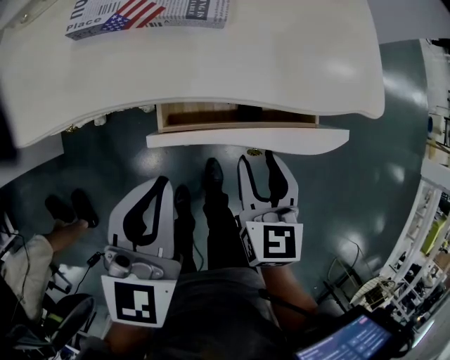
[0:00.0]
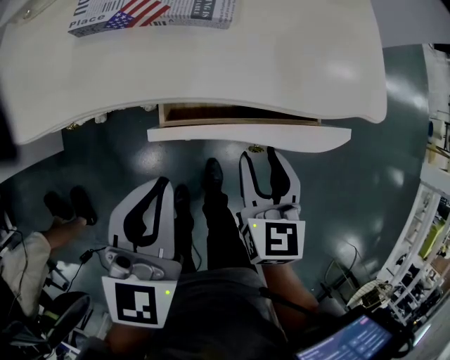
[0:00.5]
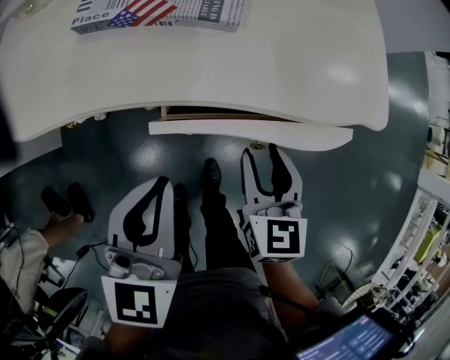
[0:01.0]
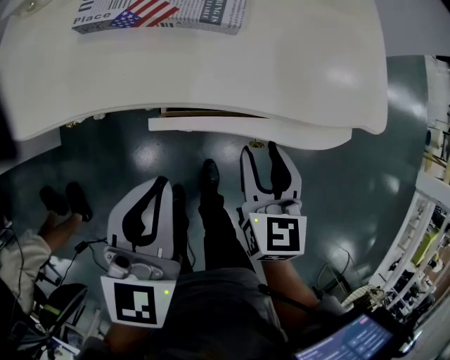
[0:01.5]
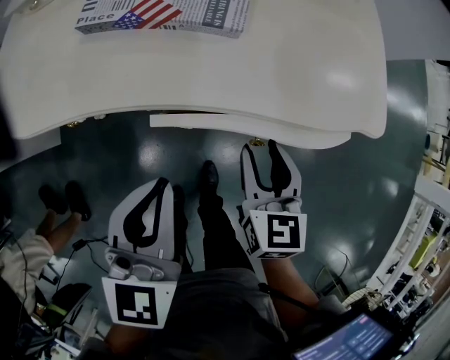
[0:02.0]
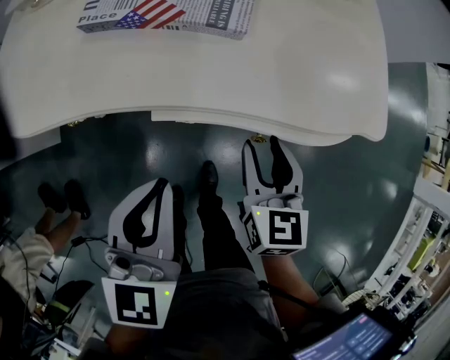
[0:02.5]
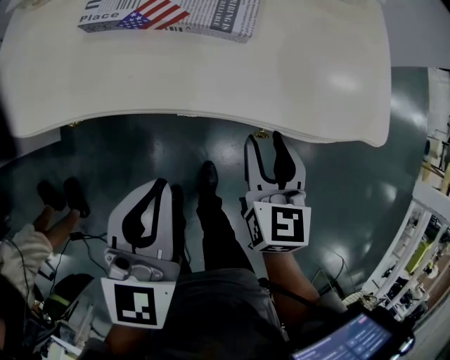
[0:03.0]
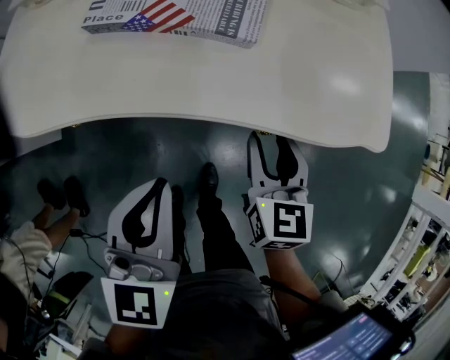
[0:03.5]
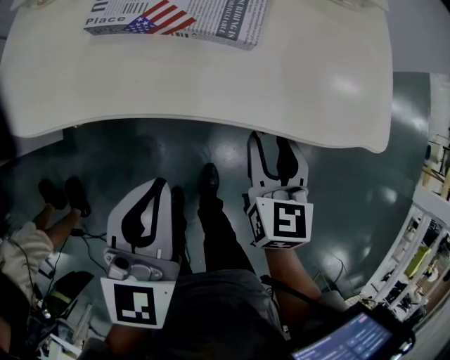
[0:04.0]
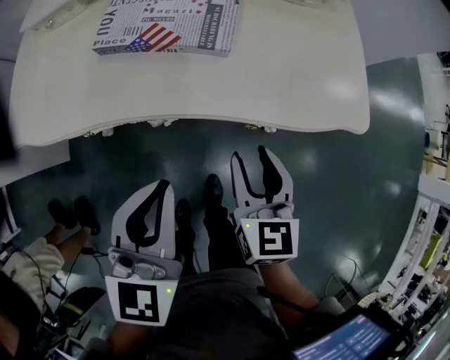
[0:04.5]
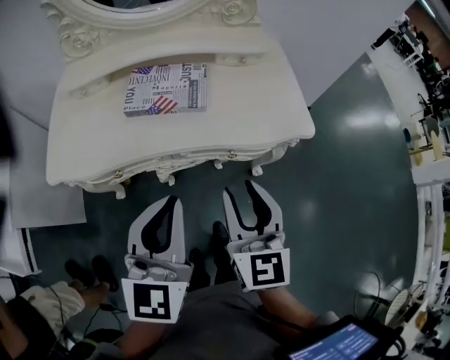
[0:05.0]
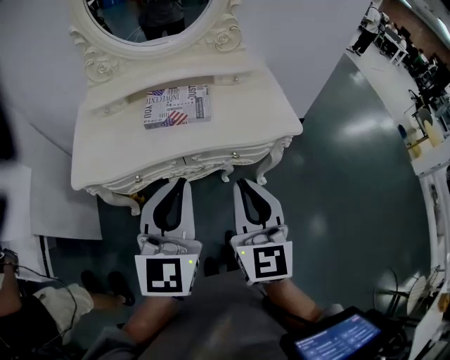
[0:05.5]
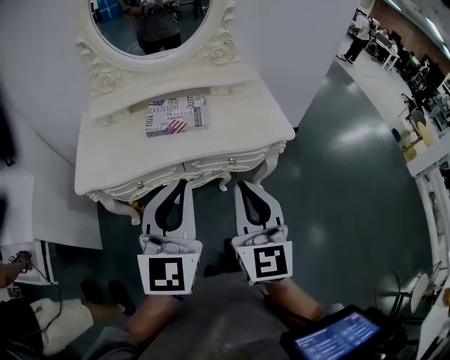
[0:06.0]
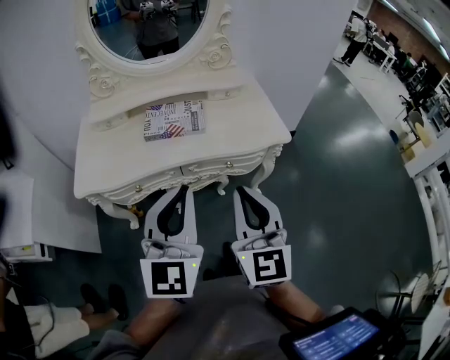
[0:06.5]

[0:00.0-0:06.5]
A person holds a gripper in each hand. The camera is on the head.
0:00.0 to 0:02.0: The grippers stay close to where they were, moving slightly.
0:02.0 to 0:04.5: The right gripper changes place by roughly 5 cm.
0:04.5 to 0:06.5: Both grippers move upward and backward, about 30 cm. The right gripper changes its angle by some 30 degrees, and closes its fingers. Meanwhile the left gripper changes its angle by about 30 degrees.

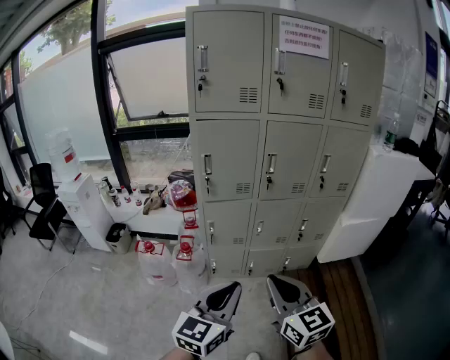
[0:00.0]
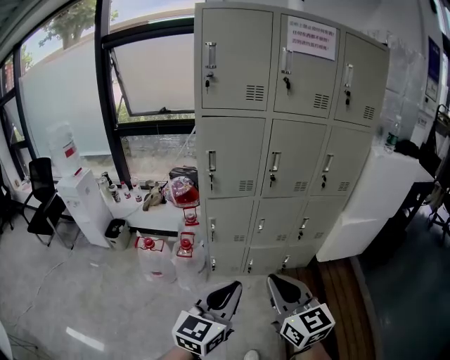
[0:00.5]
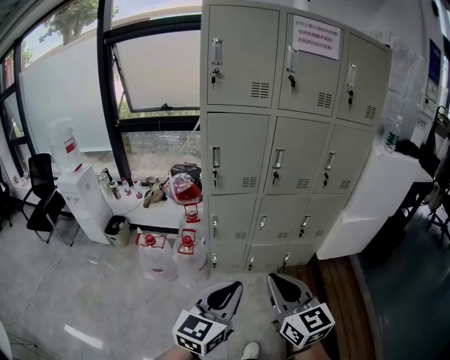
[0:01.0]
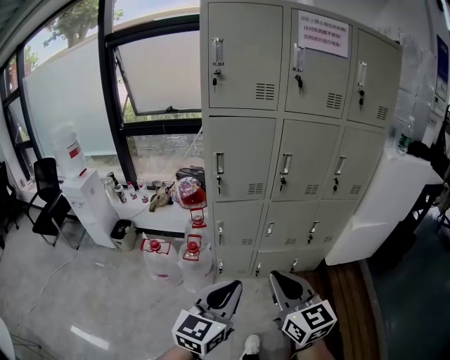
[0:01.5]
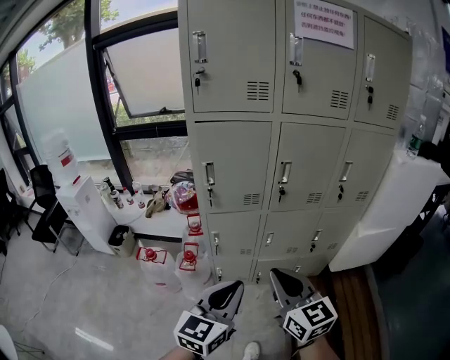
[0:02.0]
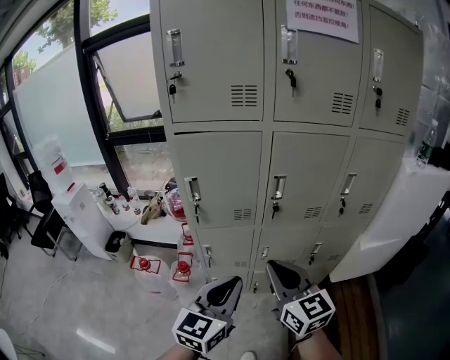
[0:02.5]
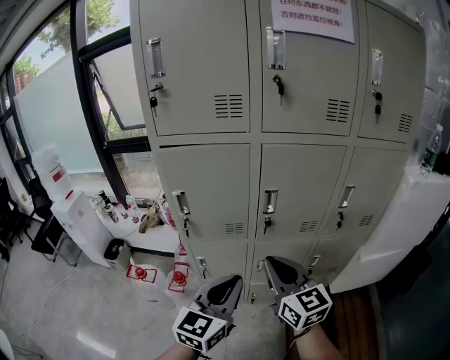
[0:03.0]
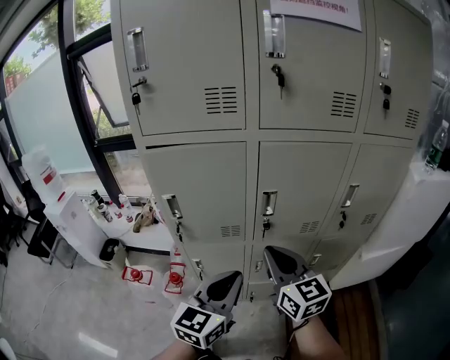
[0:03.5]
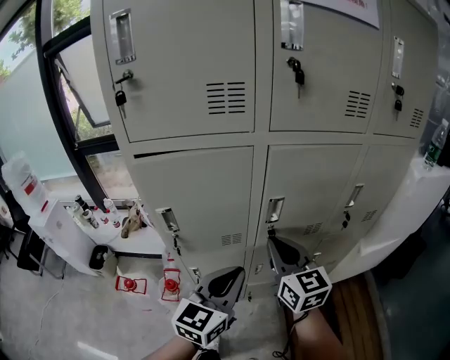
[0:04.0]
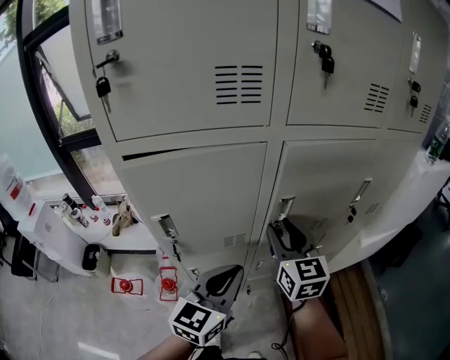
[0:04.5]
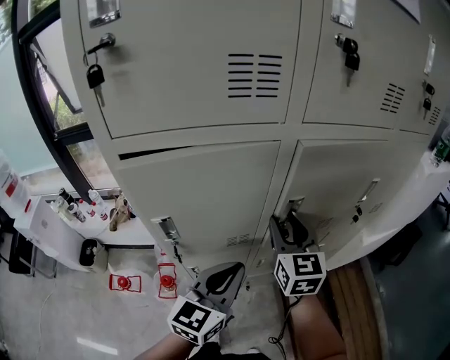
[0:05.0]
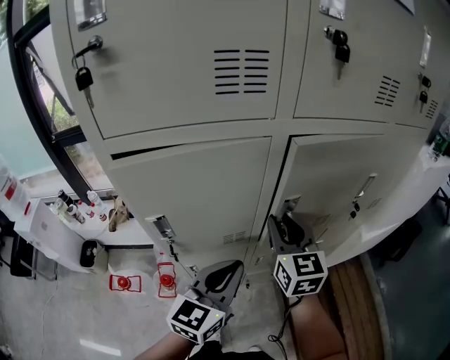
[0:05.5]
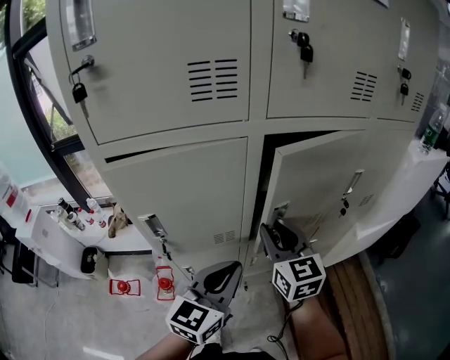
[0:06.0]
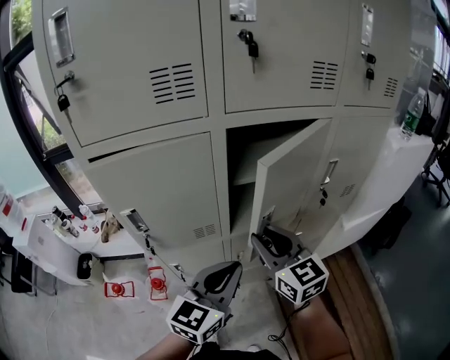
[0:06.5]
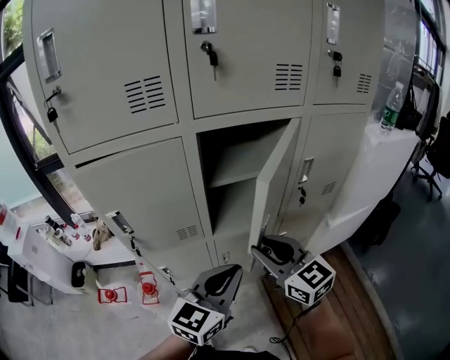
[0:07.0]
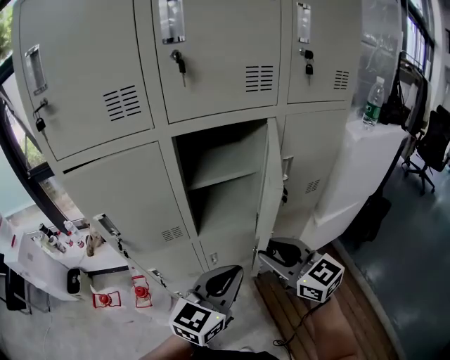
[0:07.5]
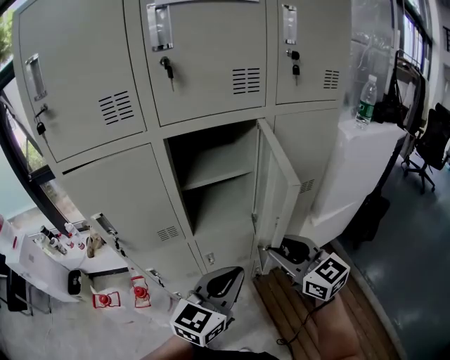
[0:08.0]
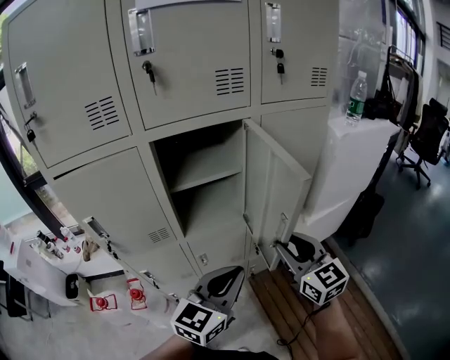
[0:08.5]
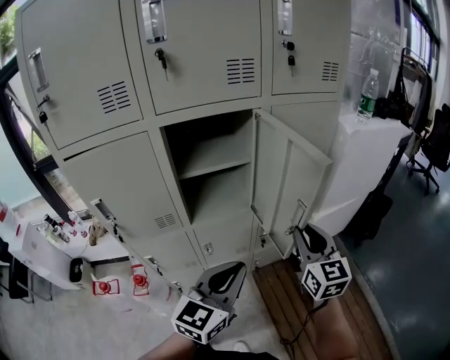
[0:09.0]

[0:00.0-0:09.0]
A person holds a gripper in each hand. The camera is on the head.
0:00.0 to 0:02.0: The two grippers go roughly 15 cm forward.
0:02.0 to 0:04.5: Both grippers move forward, approximately 35 cm. The right gripper changes its angle by roughly 20 degrees, and opens up.
0:04.5 to 0:07.0: The left gripper goes some 15 cm to the right. The right gripper shifts some 15 cm backward and to the right.
0:07.0 to 0:09.0: The left gripper is displaced to the right by some 10 cm, while the right gripper goes roughly 20 cm to the right, and turns by roughly 30 degrees.

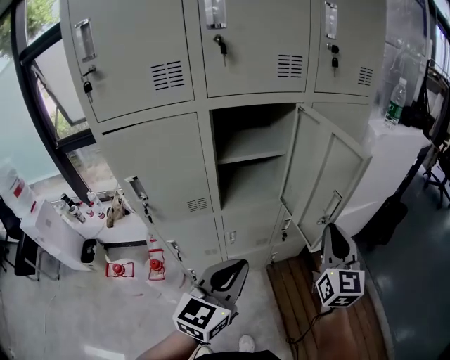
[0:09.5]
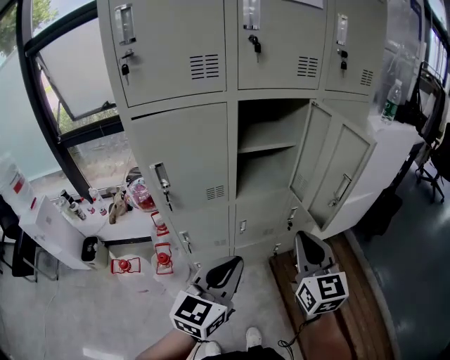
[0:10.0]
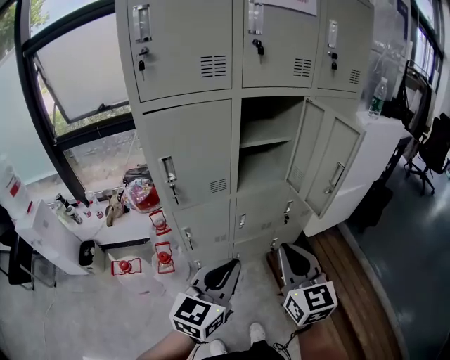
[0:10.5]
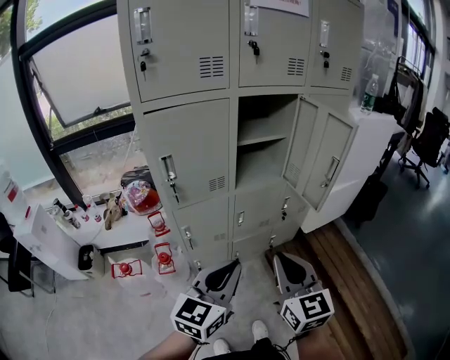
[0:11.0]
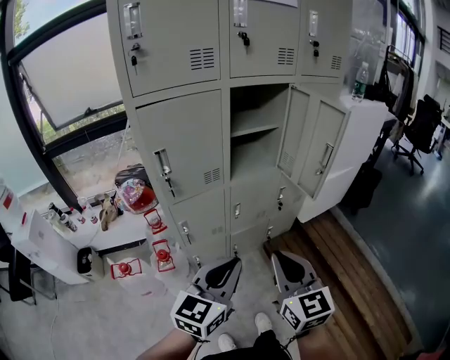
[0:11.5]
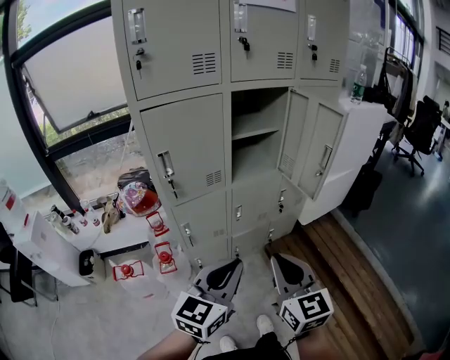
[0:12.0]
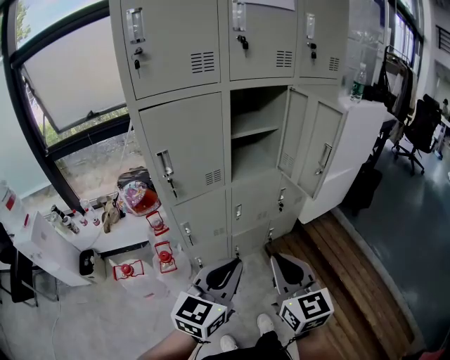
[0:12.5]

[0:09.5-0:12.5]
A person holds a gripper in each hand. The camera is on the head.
0:09.5 to 0:11.0: The left gripper travels backward and to the left by about 20 cm. The right gripper shifts approximately 30 cm backward and to the left.
0:11.0 to 0:12.5: The grippers move only a little.

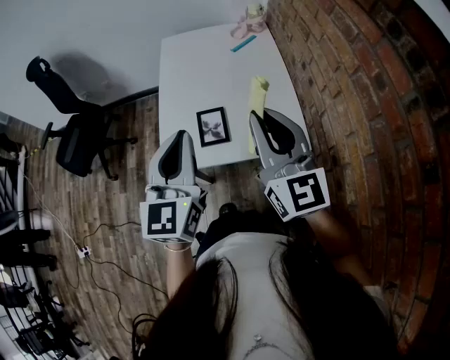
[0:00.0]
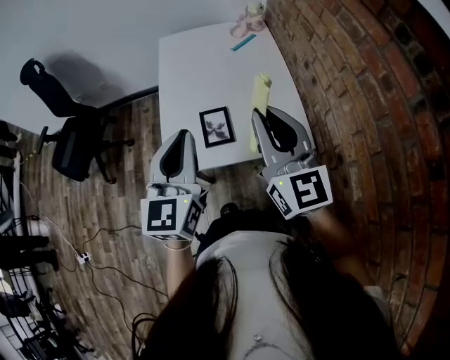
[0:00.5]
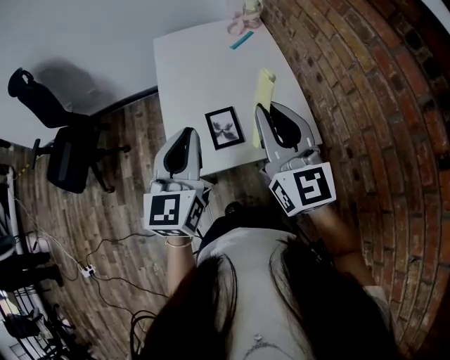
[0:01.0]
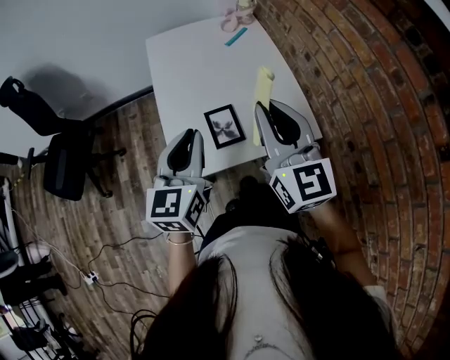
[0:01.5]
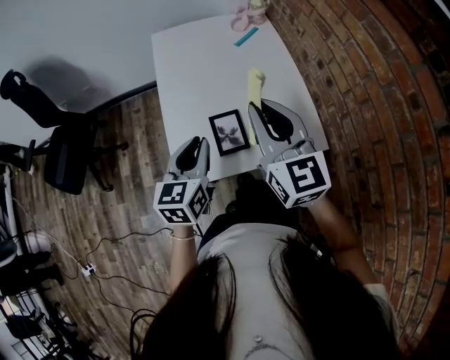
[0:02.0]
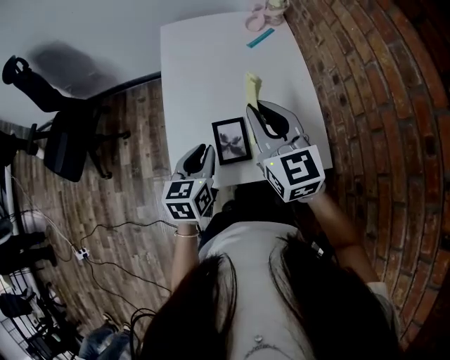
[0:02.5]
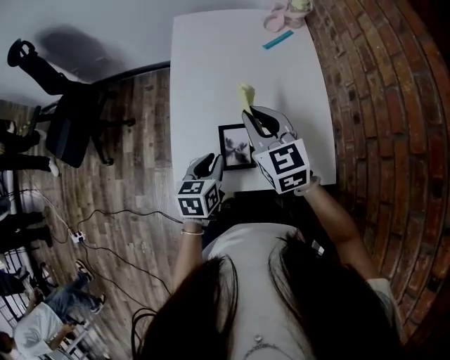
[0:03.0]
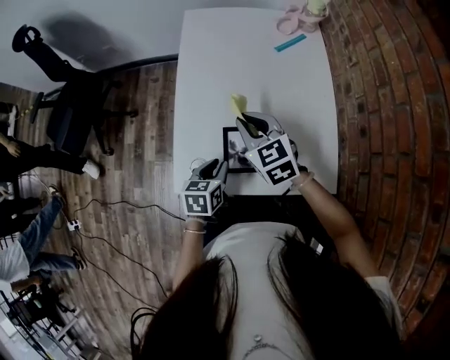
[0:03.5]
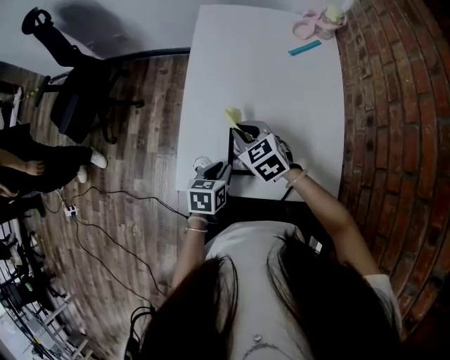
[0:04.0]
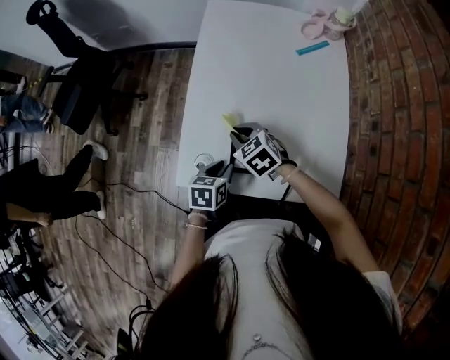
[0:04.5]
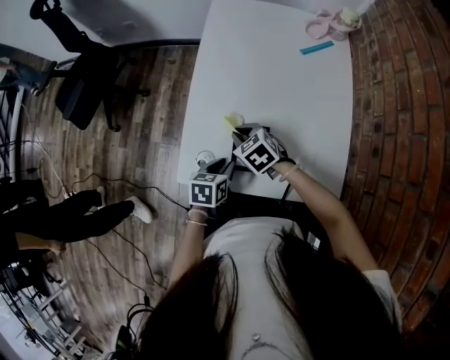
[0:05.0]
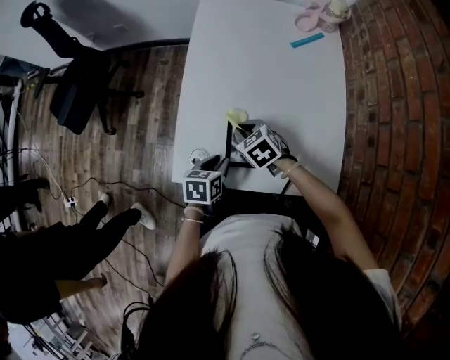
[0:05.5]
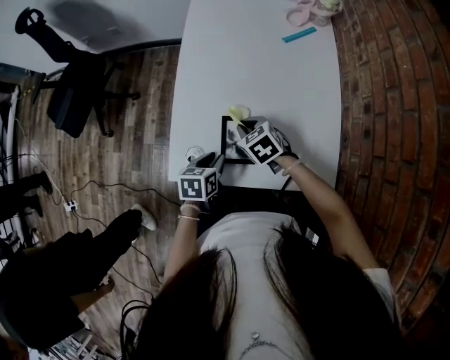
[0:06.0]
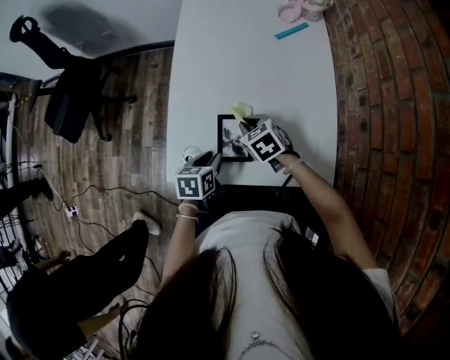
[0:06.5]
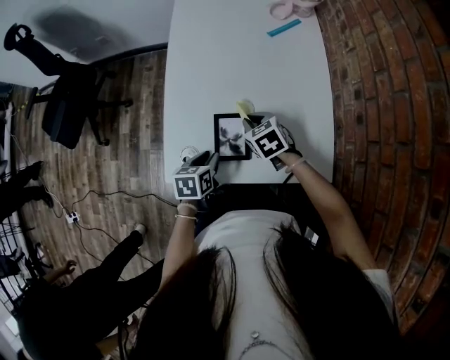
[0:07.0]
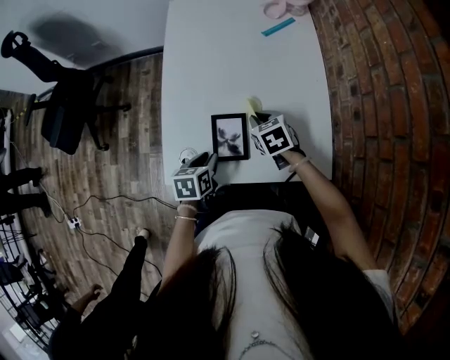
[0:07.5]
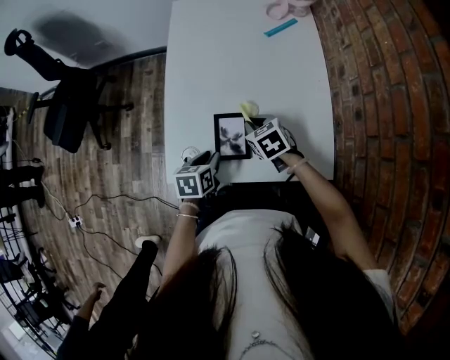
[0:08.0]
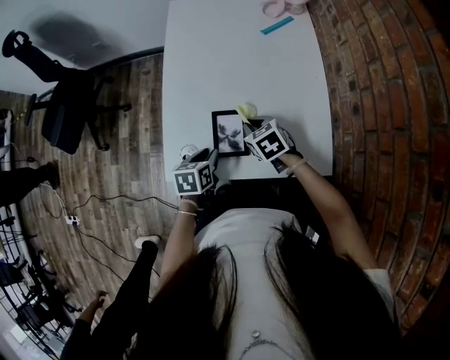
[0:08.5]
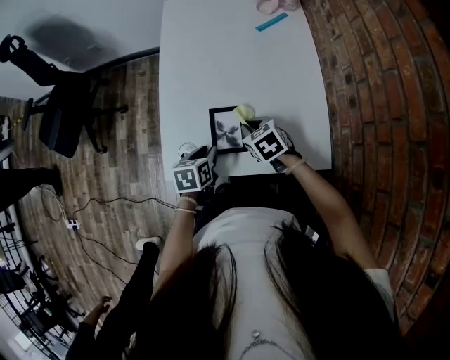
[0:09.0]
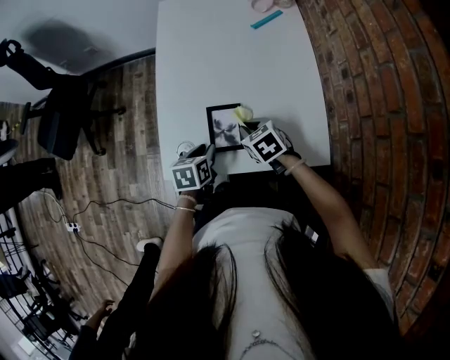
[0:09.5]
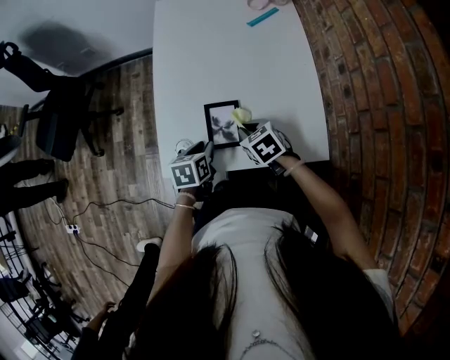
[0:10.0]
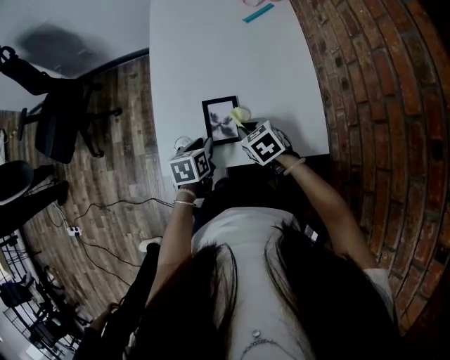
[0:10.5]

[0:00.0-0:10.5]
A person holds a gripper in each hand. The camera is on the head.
0:00.0 to 0:02.0: The right gripper goes about 15 cm forward and to the left. Meanwhile the left gripper heads downward, forward and to the left, covering approximately 20 cm, and rotates approximately 30 degrees.
0:02.0 to 0:04.0: The right gripper is displaced downward and forward by about 25 cm, and angles its fingers downward, by roughly 40 degrees. The left gripper moves downward, about 20 cm, and rotates about 30 degrees.
0:04.0 to 0:06.5: The right gripper is displaced downward and to the right by about 10 cm.
0:06.5 to 0:08.5: The grippers move only a little.
0:08.5 to 0:10.5: The right gripper goes approximately 5 cm backward.
